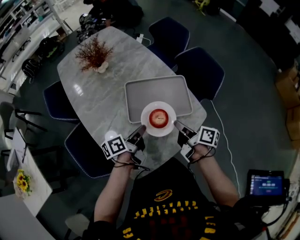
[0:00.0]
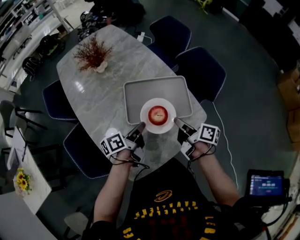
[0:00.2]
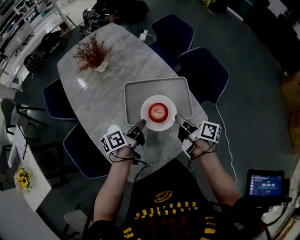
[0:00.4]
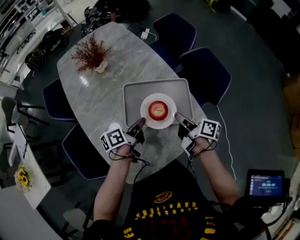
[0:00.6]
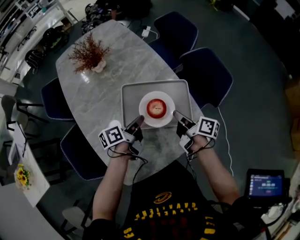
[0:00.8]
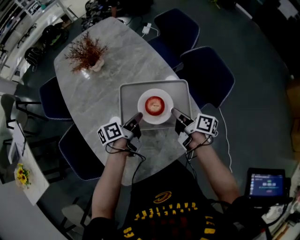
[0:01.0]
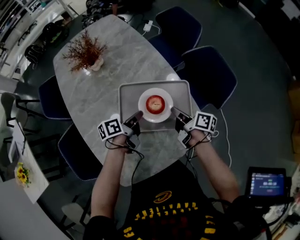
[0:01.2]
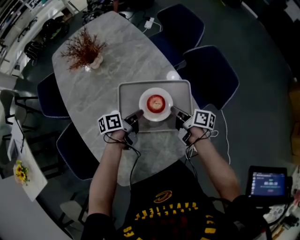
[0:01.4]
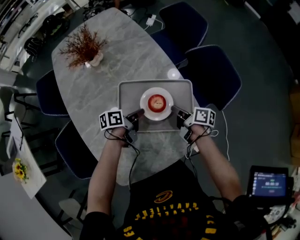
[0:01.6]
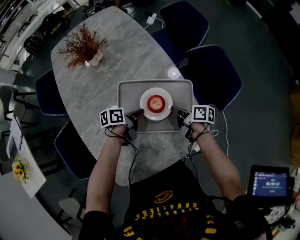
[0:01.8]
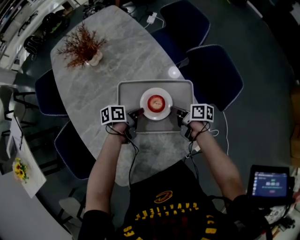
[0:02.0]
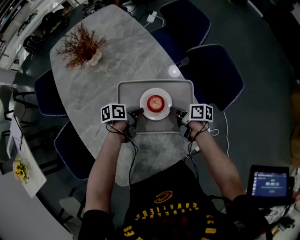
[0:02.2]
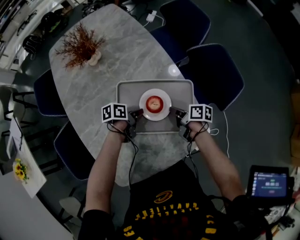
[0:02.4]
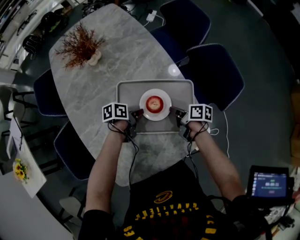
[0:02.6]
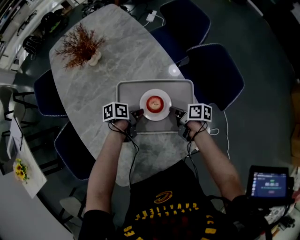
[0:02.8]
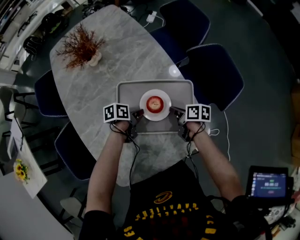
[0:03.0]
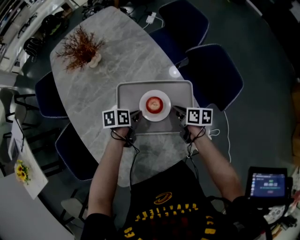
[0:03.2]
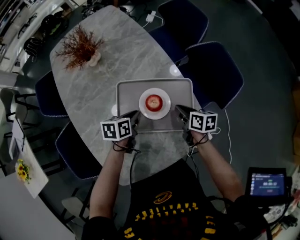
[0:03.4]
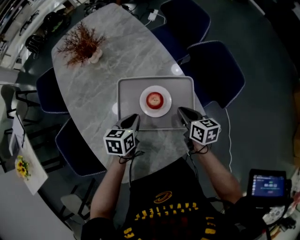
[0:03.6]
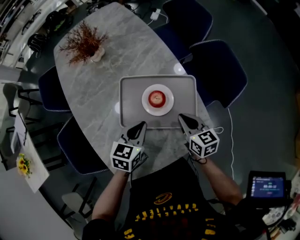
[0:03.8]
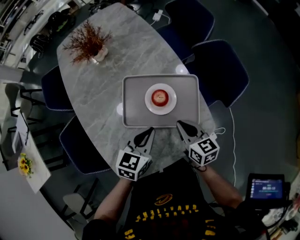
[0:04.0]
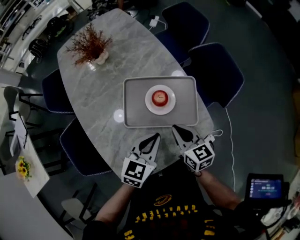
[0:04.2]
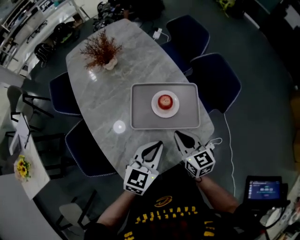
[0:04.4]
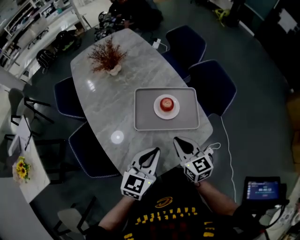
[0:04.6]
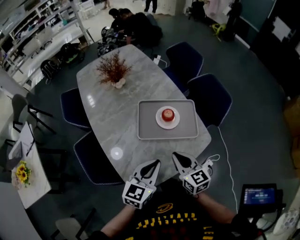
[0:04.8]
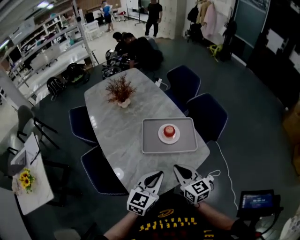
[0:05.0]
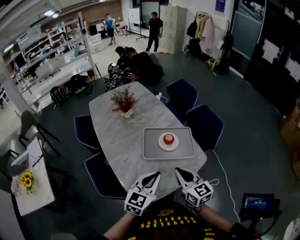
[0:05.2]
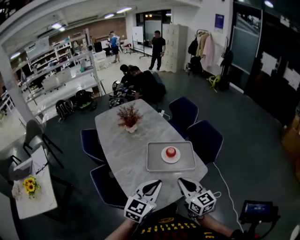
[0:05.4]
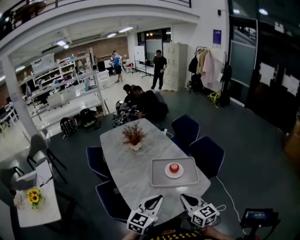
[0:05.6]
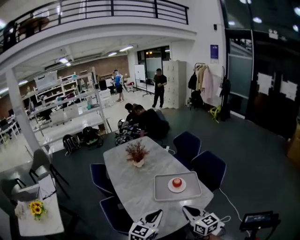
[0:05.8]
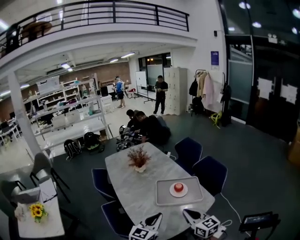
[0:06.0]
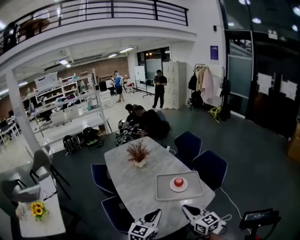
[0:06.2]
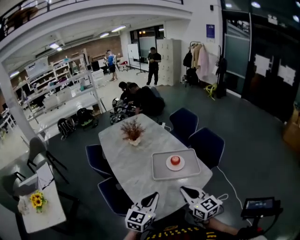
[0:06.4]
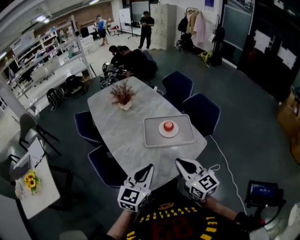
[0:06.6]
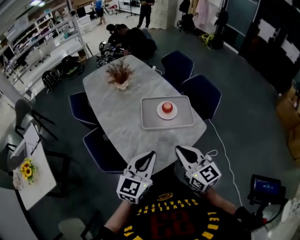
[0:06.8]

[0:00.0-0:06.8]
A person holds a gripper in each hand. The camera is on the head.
0:00.0 to 0:01.4: The grippers both shift forward and downward by some 15 cm.
0:01.4 to 0:02.8: Both grippers move downward, some 10 cm. The left gripper rotates roughly 20 degrees.
0:02.8 to 0:04.0: The grippers both shift upward and backward by approximately 15 cm. The left gripper rolls clockwise, seen from behind, by roughly 50 degrees. The right gripper rolls counterclockwise, seen from behind, by approximately 40 degrees.
0:04.0 to 0:05.4: The left gripper is displaced upward and backward by approximately 30 cm, and changes its angle by about 30 degrees. Meanwhile the right gripper heads upward, backward and to the left, covering some 30 cm, and changes its angle by about 30 degrees.
0:05.4 to 0:06.8: The left gripper moves approximately 5 cm. Meanwhile the right gripper changes place by approximately 5 cm.

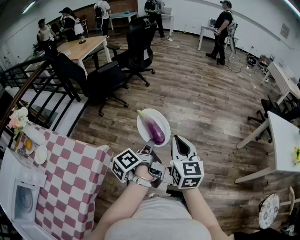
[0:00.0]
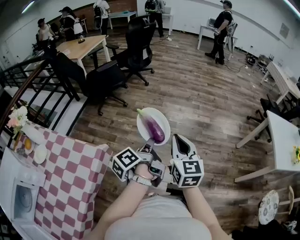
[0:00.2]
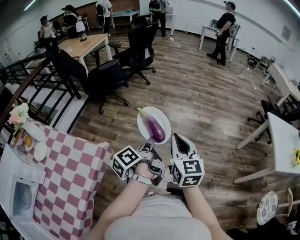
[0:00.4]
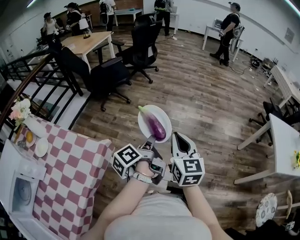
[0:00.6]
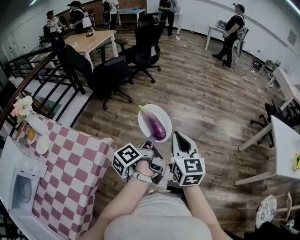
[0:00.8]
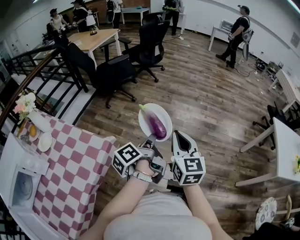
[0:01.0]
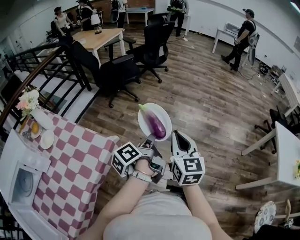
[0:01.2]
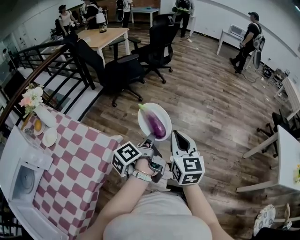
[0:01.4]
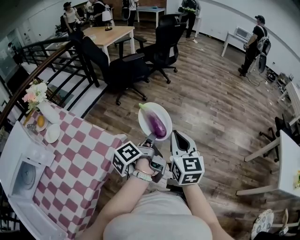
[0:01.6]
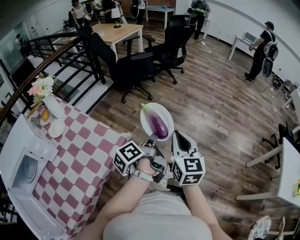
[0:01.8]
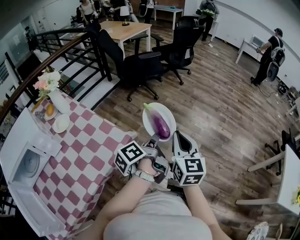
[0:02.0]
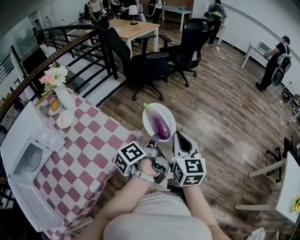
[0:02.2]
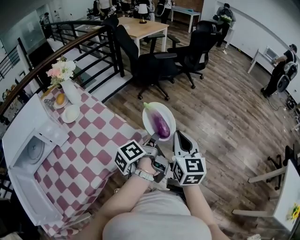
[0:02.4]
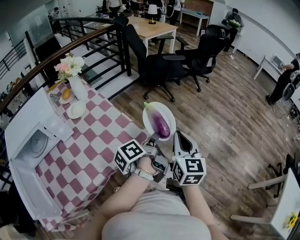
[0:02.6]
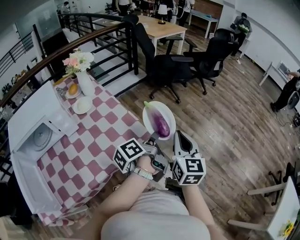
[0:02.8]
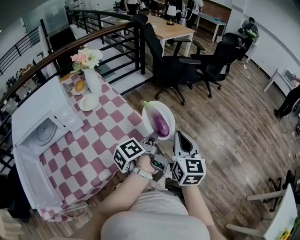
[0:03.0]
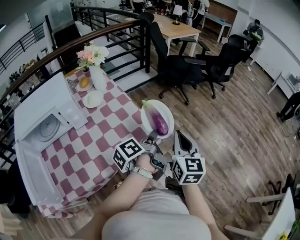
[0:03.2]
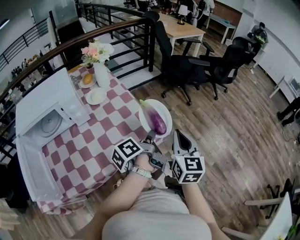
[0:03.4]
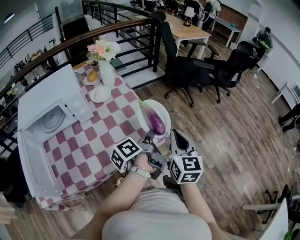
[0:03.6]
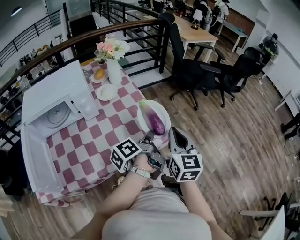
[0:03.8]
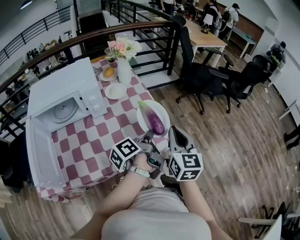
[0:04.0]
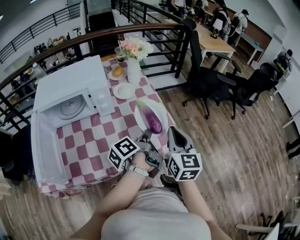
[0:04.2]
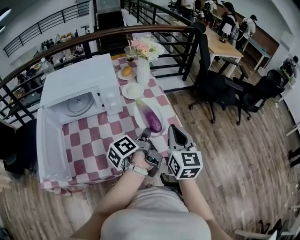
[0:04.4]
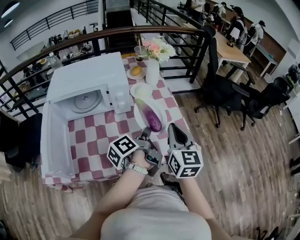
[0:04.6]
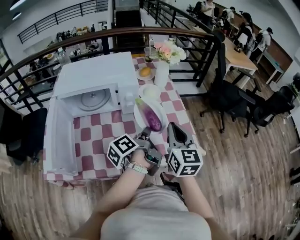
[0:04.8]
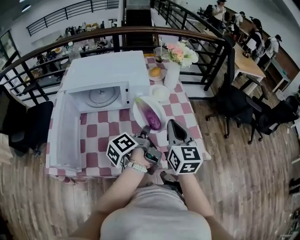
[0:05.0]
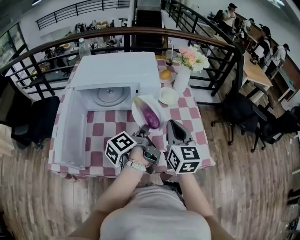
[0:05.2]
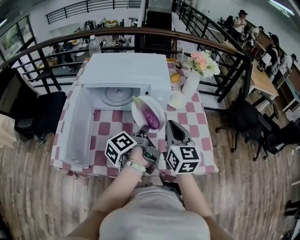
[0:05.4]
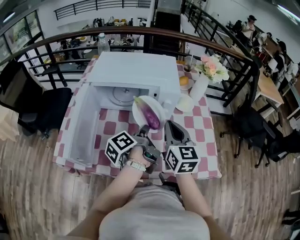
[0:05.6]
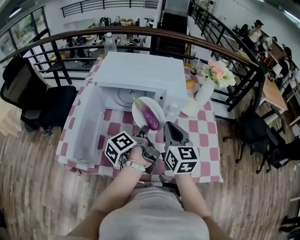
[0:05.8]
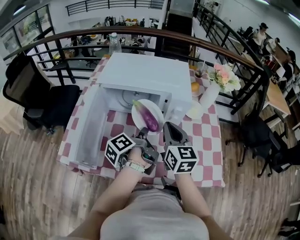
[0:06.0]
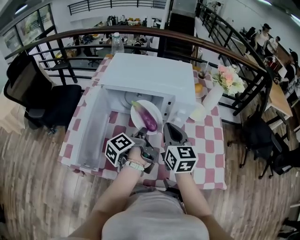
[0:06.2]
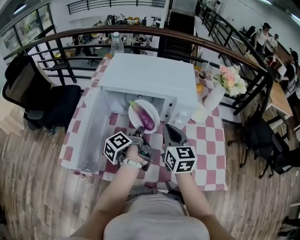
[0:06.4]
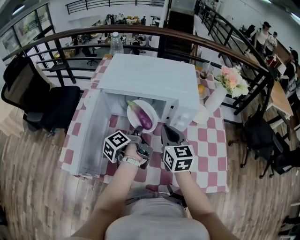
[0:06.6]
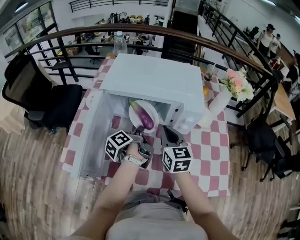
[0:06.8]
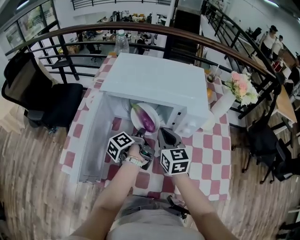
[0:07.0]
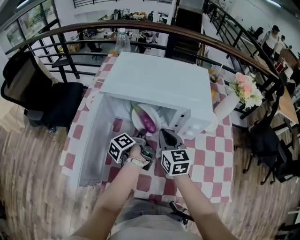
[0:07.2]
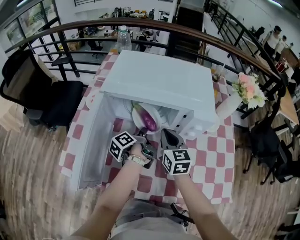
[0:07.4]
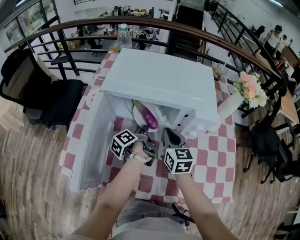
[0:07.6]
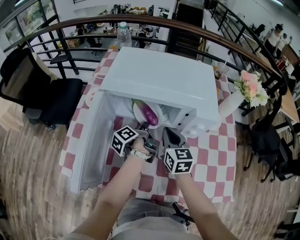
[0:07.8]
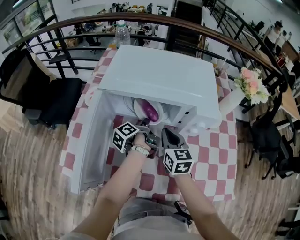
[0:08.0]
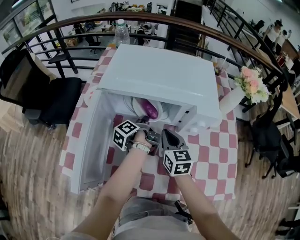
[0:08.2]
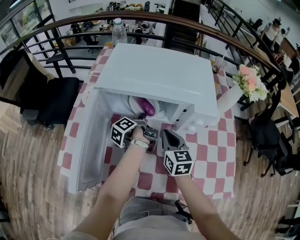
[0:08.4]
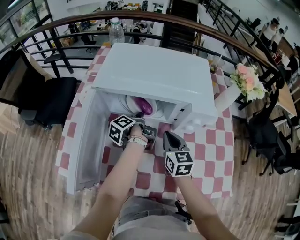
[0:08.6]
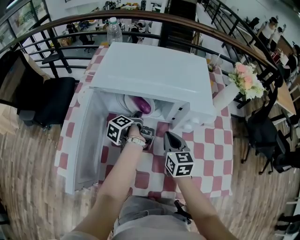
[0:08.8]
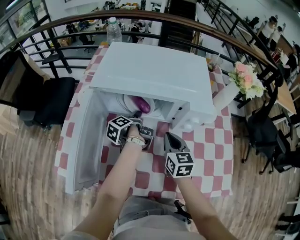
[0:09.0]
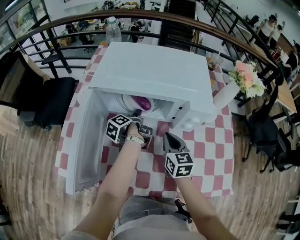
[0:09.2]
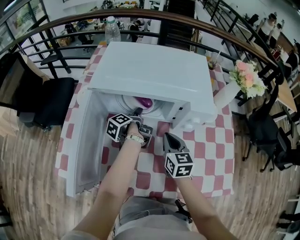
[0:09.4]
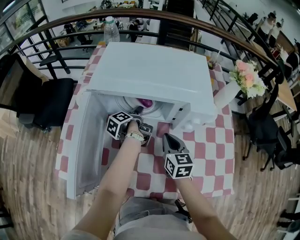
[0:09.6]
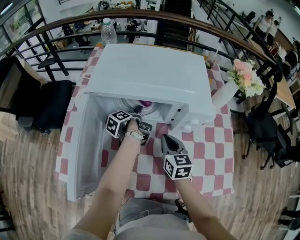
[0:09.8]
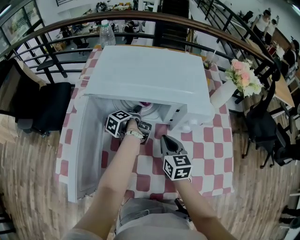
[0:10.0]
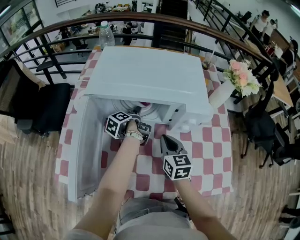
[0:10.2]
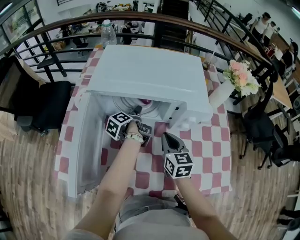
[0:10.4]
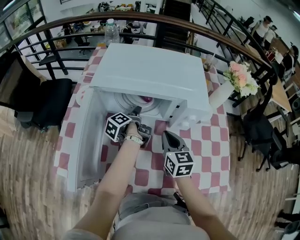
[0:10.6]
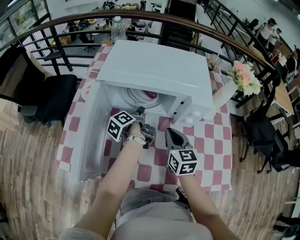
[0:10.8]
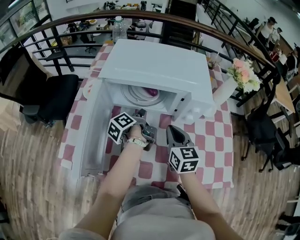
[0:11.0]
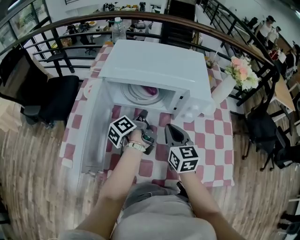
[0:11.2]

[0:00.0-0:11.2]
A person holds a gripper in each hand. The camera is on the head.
0:00.0 to 0:01.6: The right gripper shifts by roughly 10 cm.
0:01.6 to 0:03.2: The right gripper changes place by some 20 cm, and changes its angle by roughly 20 degrees.
0:03.2 to 0:04.8: The right gripper changes place by some 25 cm, and swivels roughly 30 degrees.
0:04.8 to 0:06.4: The right gripper moves some 25 cm, and changes its angle by some 20 degrees.
0:06.4 to 0:08.0: The right gripper heads downward, covering roughly 10 cm.
0:08.0 to 0:09.6: The right gripper moves about 5 cm.
0:09.6 to 0:11.2: The right gripper heads upward, covering approximately 5 cm.

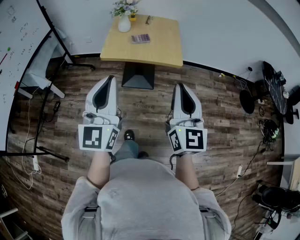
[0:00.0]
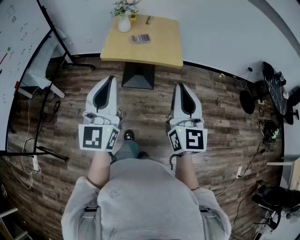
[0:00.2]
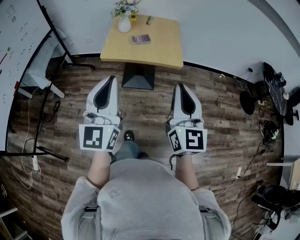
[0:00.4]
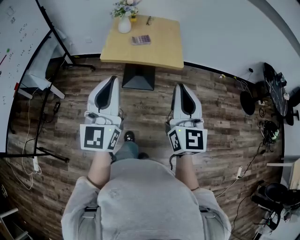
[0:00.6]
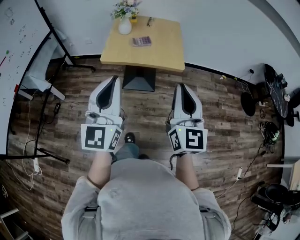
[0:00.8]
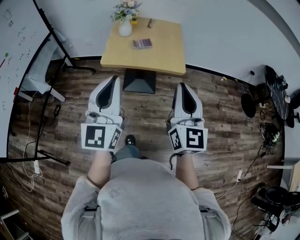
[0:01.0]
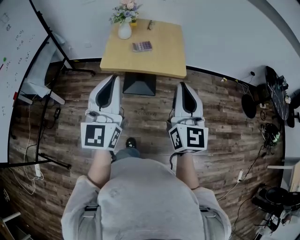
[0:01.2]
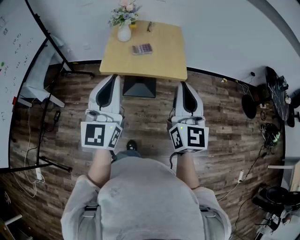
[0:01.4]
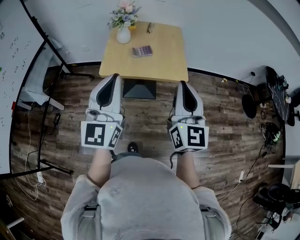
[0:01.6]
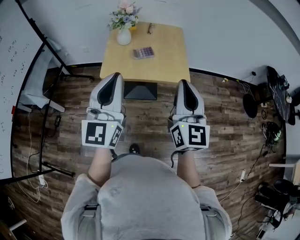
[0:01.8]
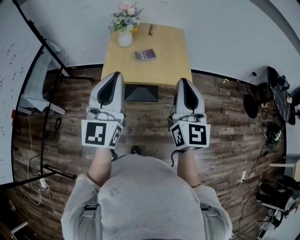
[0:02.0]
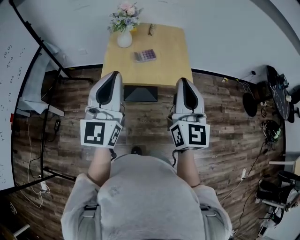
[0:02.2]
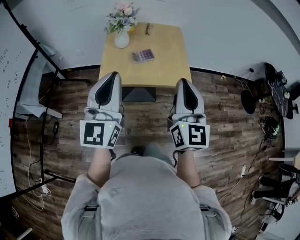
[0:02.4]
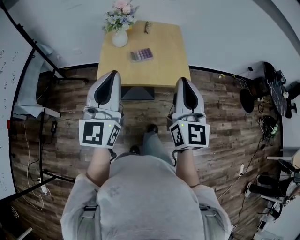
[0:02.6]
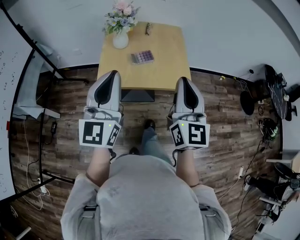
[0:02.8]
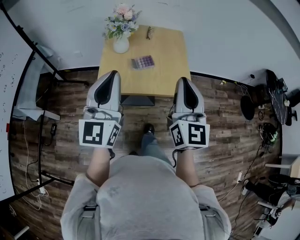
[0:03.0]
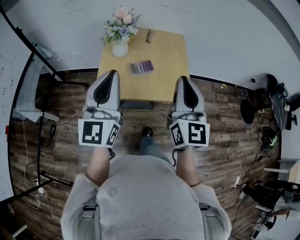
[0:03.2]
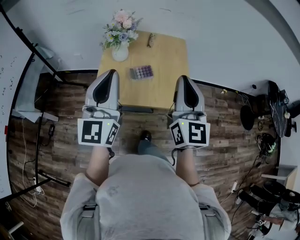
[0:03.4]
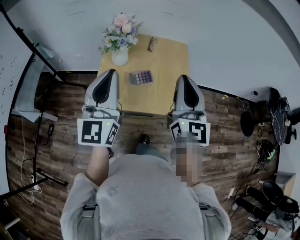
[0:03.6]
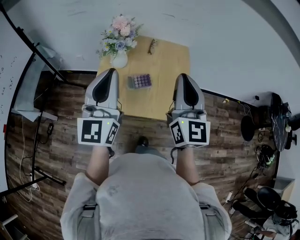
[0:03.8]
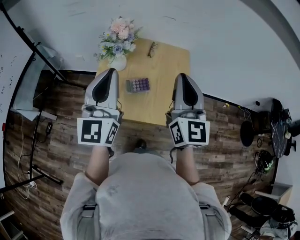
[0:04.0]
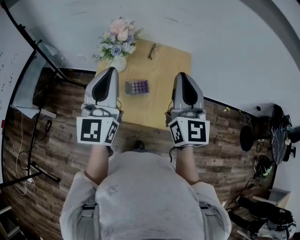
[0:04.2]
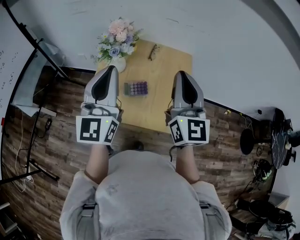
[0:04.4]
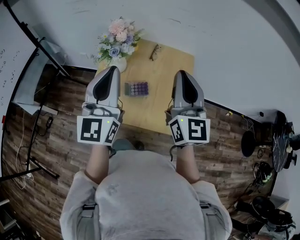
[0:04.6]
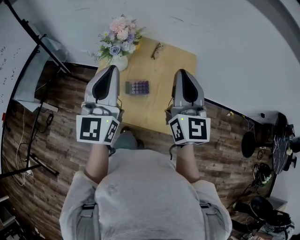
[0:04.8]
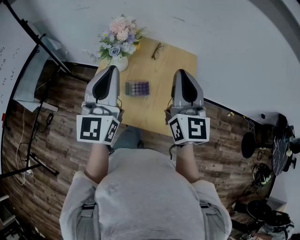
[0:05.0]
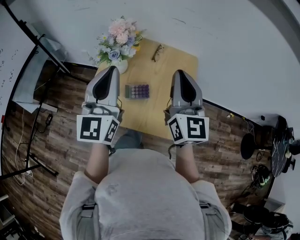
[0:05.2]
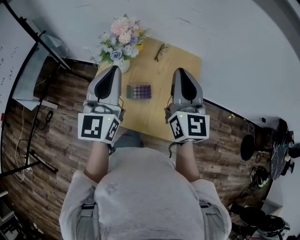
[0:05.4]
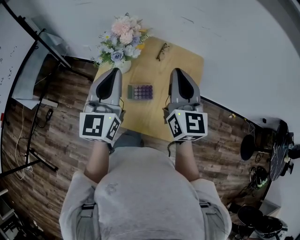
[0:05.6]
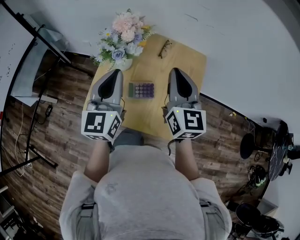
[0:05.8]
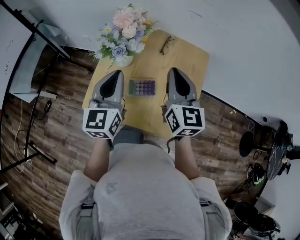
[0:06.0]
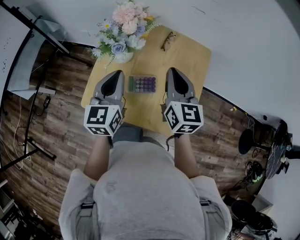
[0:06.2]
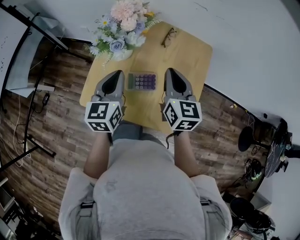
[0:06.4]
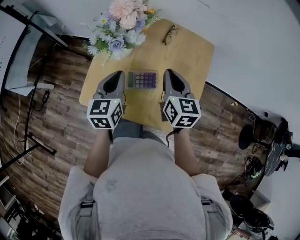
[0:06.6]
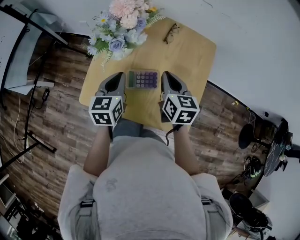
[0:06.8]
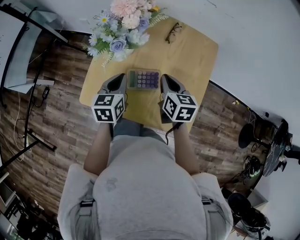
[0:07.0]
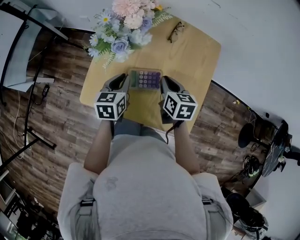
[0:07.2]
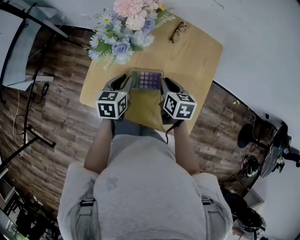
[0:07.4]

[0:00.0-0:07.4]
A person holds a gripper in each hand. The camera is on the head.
0:00.0 to 0:01.4: The two grippers go roughly 10 cm forward.
0:01.4 to 0:03.0: The two grippers go approximately 15 cm forward.
0:03.0 to 0:04.4: The grippers both shift forward by approximately 20 cm.
0:04.4 to 0:06.0: The left gripper shifts approximately 15 cm downward and forward, and changes its angle by some 20 degrees, while the right gripper is displaced forward and downward by some 15 cm.
0:06.0 to 0:07.4: Both grippers travel together downward, roughly 25 cm. The right gripper angles its fingers downward, by roughly 40 degrees. Meanwhile the left gripper tips its fingers downward by about 30 degrees.
